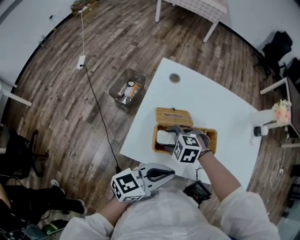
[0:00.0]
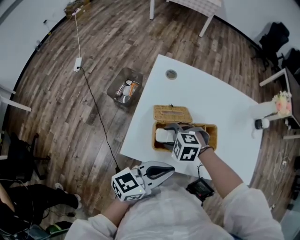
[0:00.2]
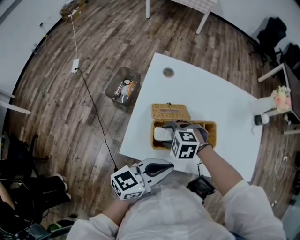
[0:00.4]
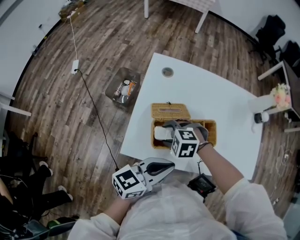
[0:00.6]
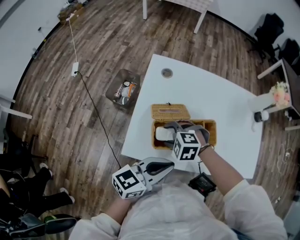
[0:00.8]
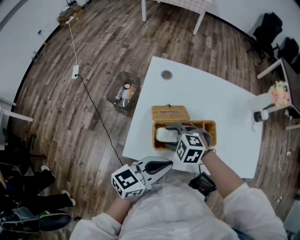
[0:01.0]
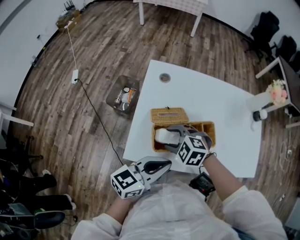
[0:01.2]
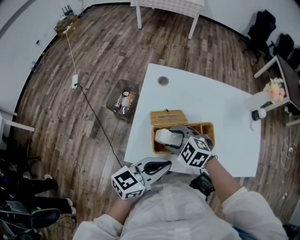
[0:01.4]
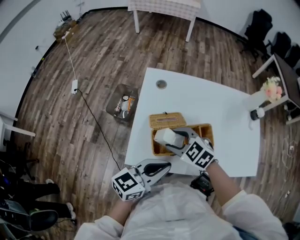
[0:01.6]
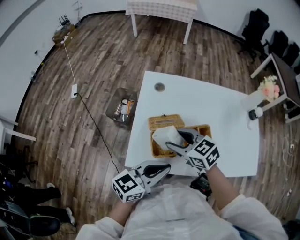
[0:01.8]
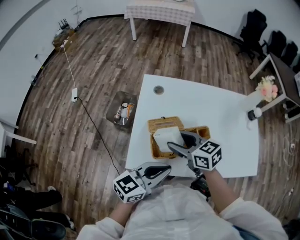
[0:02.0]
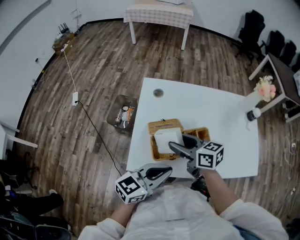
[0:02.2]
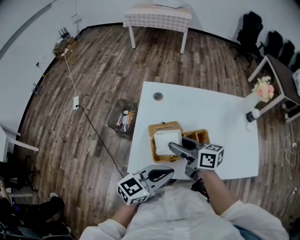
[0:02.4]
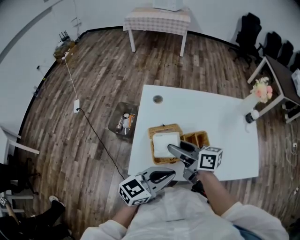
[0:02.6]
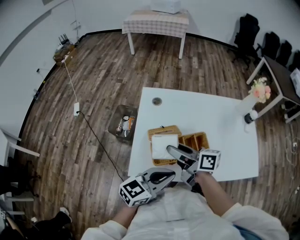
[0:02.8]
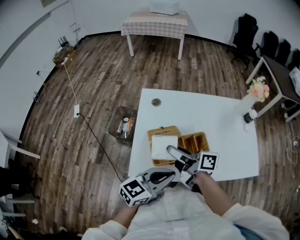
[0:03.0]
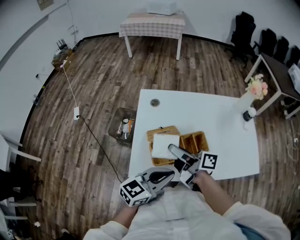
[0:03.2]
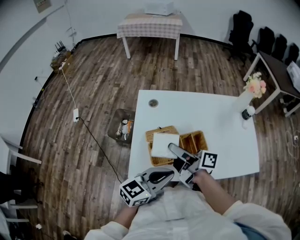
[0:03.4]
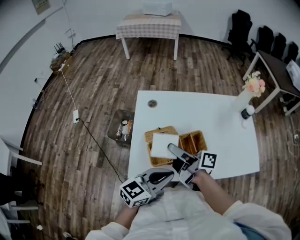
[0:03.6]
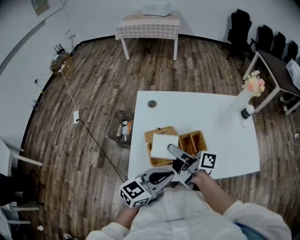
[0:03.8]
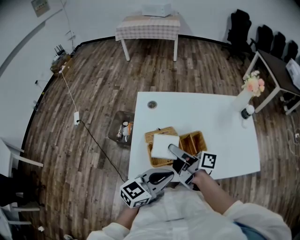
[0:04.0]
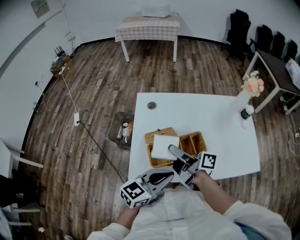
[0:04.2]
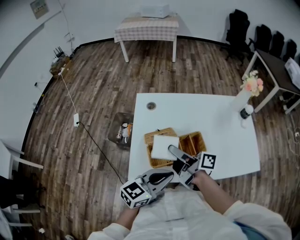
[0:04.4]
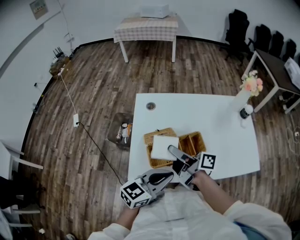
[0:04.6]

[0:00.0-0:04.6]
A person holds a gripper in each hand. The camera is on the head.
0:00.0 to 0:01.6: The right gripper is displaced upward by about 10 cm, and rotates about 40 degrees.
0:01.6 to 0:03.0: The right gripper moves upward, approximately 10 cm, and twists roughly 70 degrees clockwise, seen from behind.
0:03.0 to 0:04.6: The grippers move only a little.

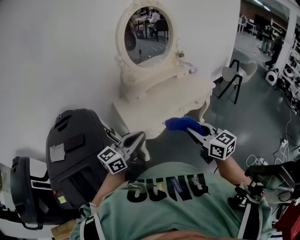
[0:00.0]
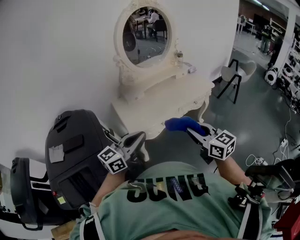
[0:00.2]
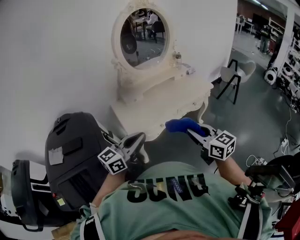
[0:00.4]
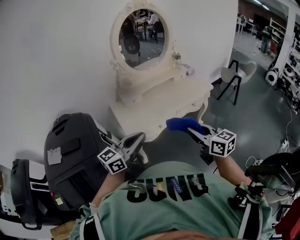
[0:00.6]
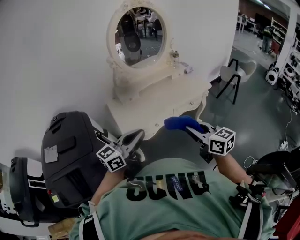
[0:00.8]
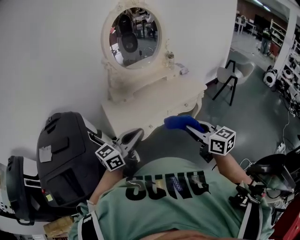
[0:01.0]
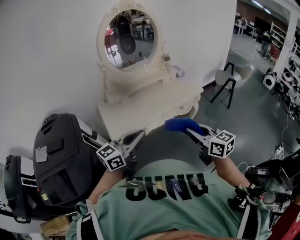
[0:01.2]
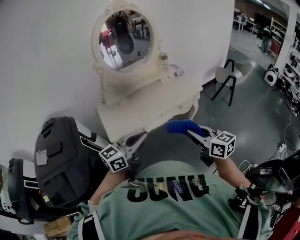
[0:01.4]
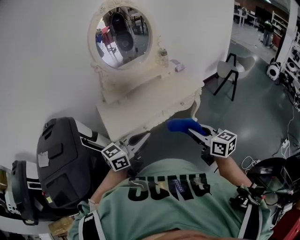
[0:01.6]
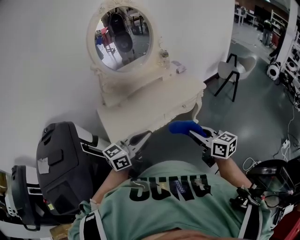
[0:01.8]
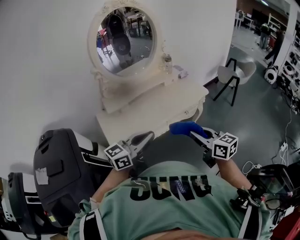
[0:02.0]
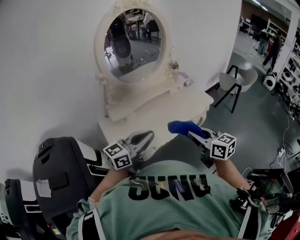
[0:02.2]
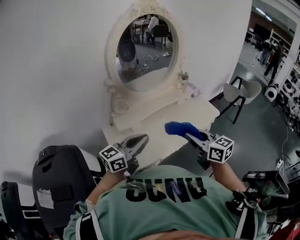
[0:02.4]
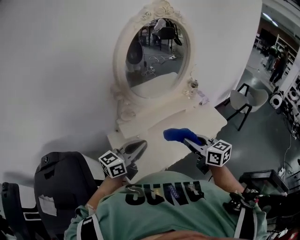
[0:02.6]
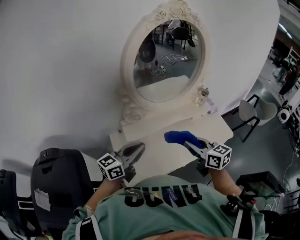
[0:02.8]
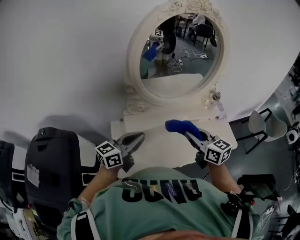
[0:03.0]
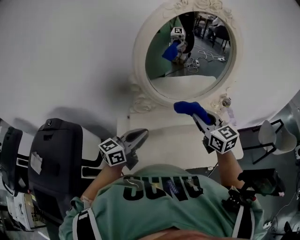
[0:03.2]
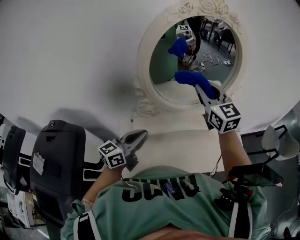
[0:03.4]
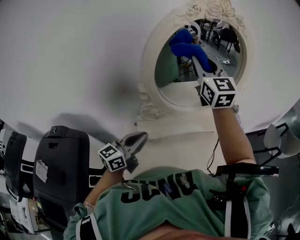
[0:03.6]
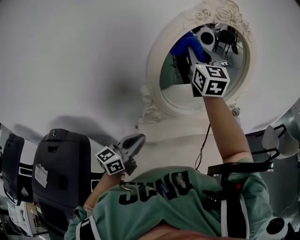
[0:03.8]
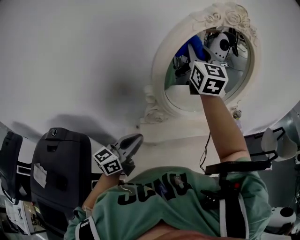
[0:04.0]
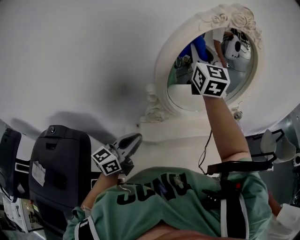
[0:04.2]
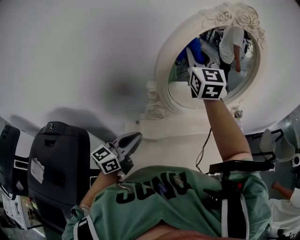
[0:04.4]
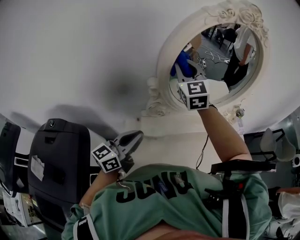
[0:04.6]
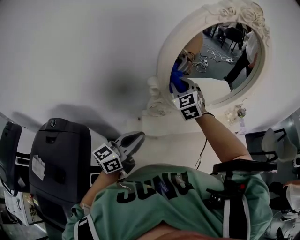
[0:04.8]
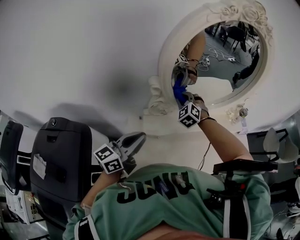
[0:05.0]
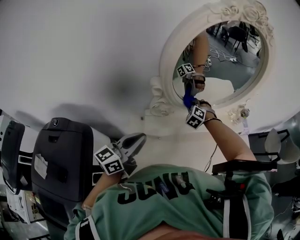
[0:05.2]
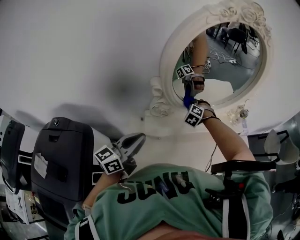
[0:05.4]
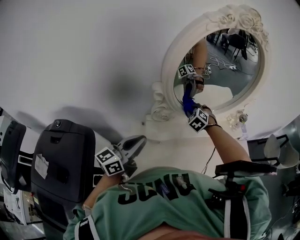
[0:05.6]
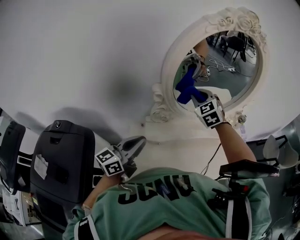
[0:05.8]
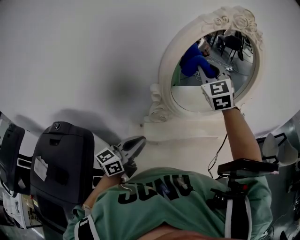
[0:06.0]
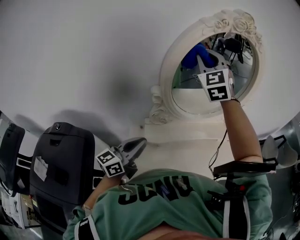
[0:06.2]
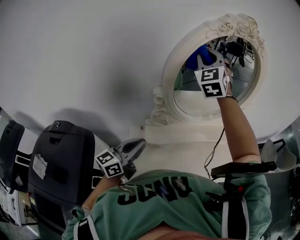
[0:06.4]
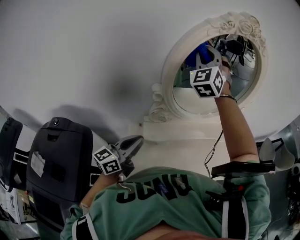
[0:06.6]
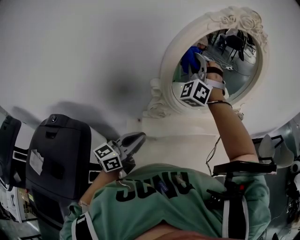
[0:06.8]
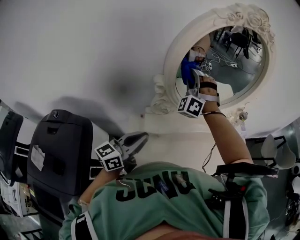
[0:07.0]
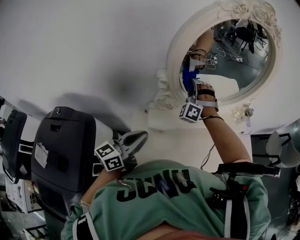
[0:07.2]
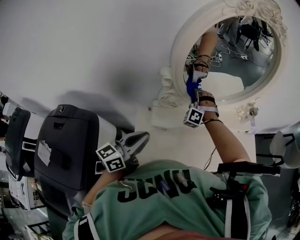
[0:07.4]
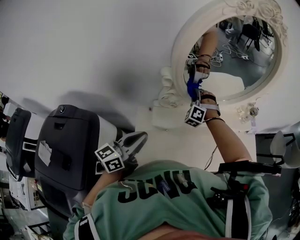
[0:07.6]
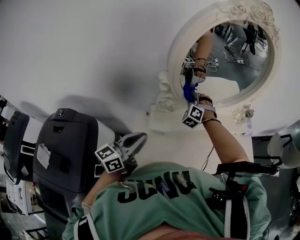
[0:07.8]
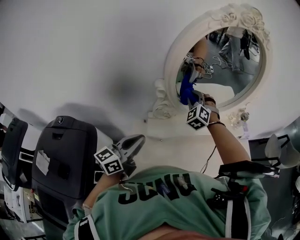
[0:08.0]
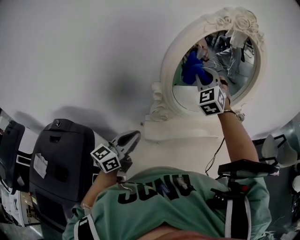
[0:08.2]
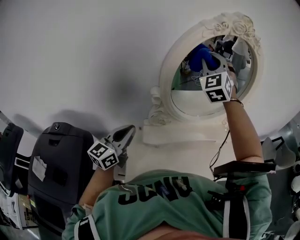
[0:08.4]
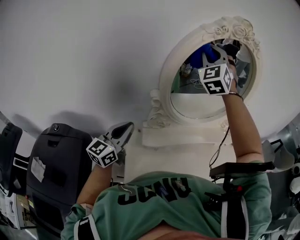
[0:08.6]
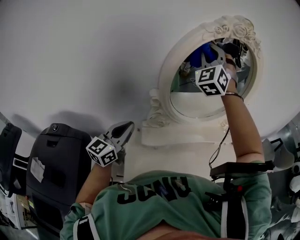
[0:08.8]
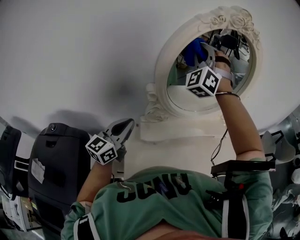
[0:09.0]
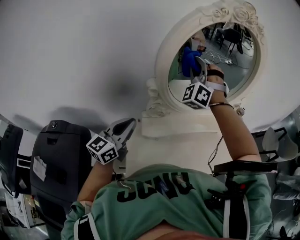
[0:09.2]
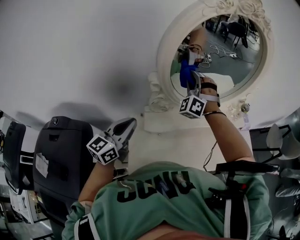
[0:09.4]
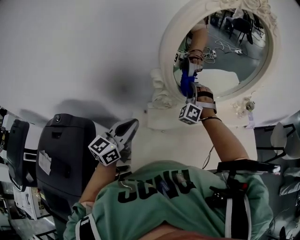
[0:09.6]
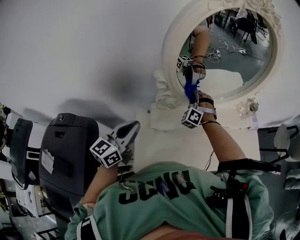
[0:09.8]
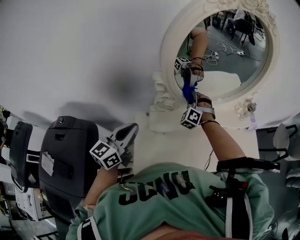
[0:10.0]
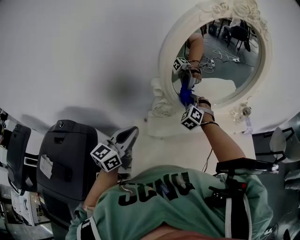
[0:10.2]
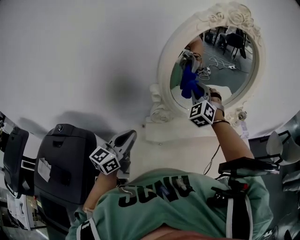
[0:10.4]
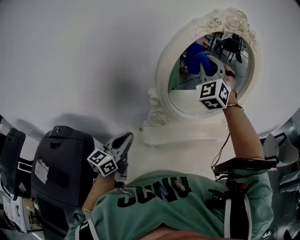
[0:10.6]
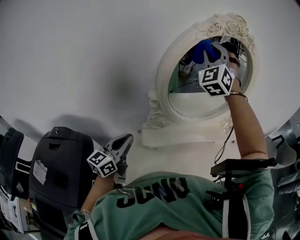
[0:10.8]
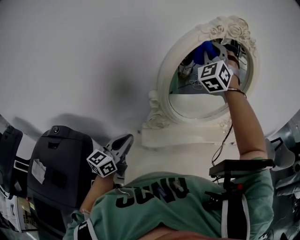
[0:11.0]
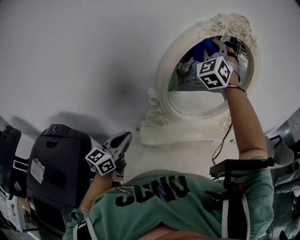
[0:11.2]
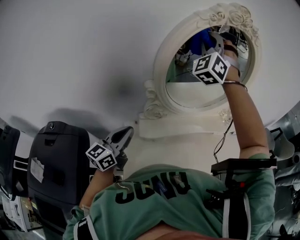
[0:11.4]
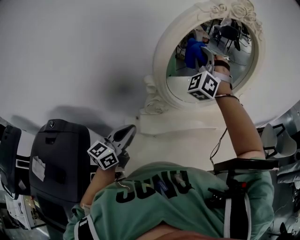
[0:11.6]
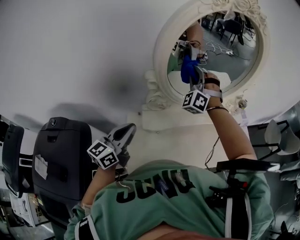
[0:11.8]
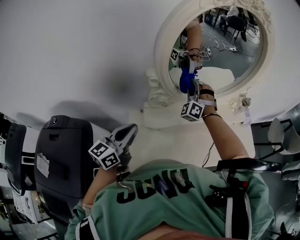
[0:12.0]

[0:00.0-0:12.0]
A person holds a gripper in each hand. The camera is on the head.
0:00.0 to 0:01.6: Both grippers travel together to the right, approximately 20 cm.
0:01.6 to 0:03.0: The two grippers travel together, forward and to the left, some 40 cm. The left gripper turns by approximately 20 degrees.
0:03.0 to 0:04.4: The right gripper is displaced forward, upward and to the left by roughly 40 cm, and changes its angle by about 40 degrees. The left gripper shifts roughly 10 cm to the left.
0:04.4 to 0:06.0: The right gripper moves about 40 cm downward and comes back, and rotates roughly 30 degrees.
0:06.0 to 0:07.6: The right gripper shifts some 30 cm downward, and rotates around the line of its fingers by about 40 degrees, counterclockwise from behind.
0:07.6 to 0:09.0: The right gripper travels upward by about 35 cm, and tilts its fingers some 30 degrees upward. Meanwhile the left gripper moves forward and upward, some 10 cm, and turns by some 20 degrees.
0:09.0 to 0:10.4: The right gripper travels downward by some 20 cm, and rotates about 20 degrees.
0:10.4 to 0:12.0: The right gripper travels upward and back again, about 25 cm each way.

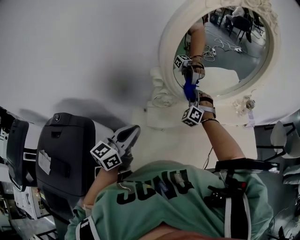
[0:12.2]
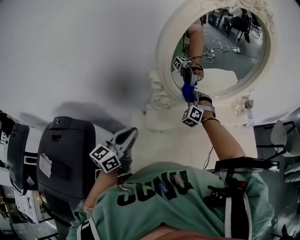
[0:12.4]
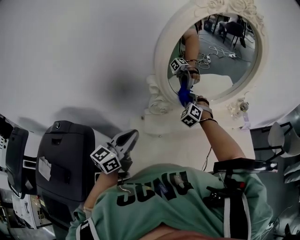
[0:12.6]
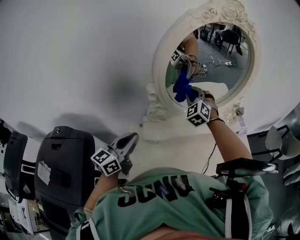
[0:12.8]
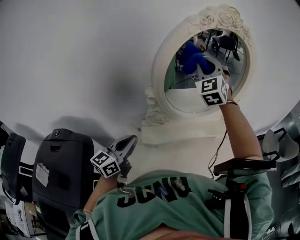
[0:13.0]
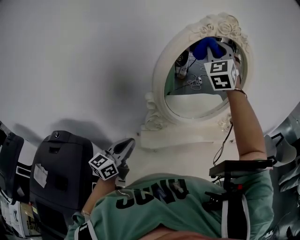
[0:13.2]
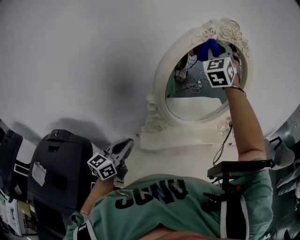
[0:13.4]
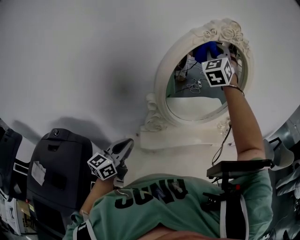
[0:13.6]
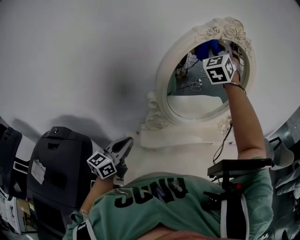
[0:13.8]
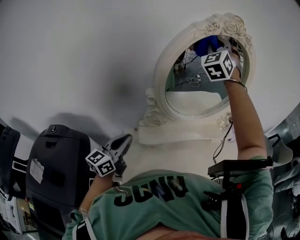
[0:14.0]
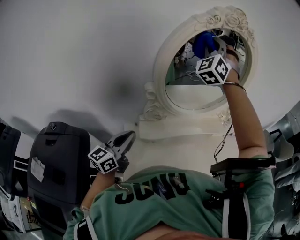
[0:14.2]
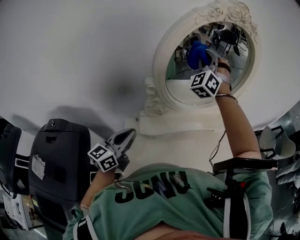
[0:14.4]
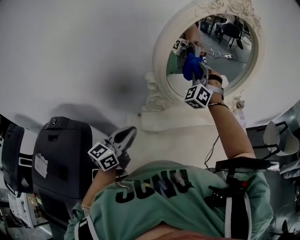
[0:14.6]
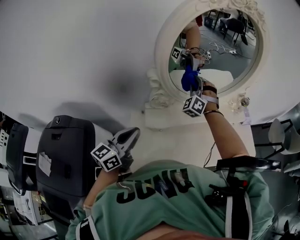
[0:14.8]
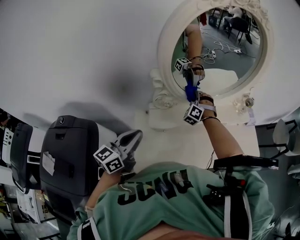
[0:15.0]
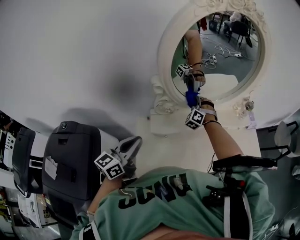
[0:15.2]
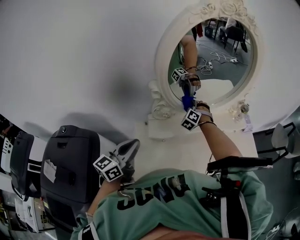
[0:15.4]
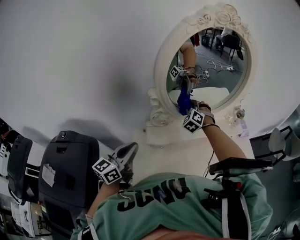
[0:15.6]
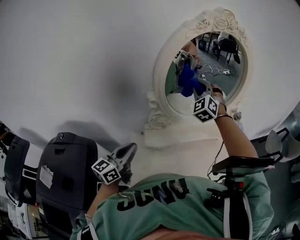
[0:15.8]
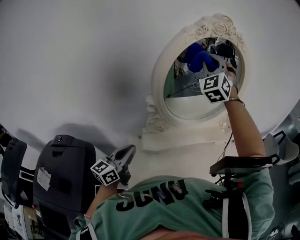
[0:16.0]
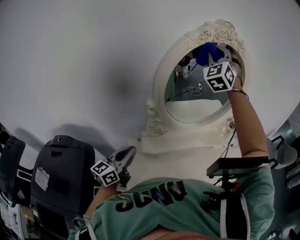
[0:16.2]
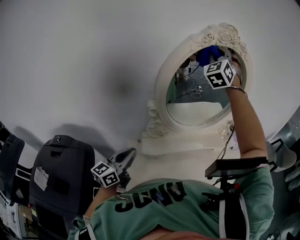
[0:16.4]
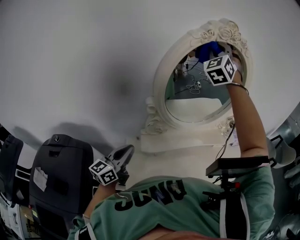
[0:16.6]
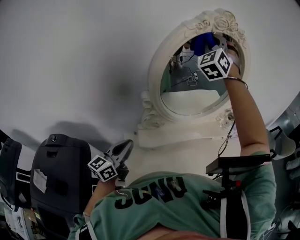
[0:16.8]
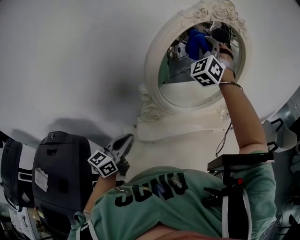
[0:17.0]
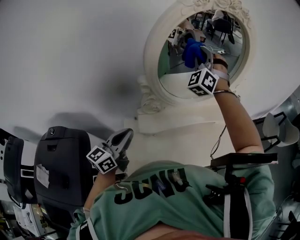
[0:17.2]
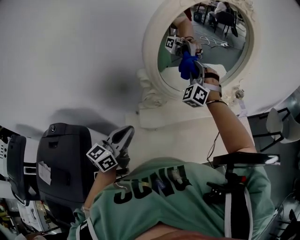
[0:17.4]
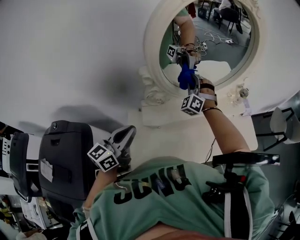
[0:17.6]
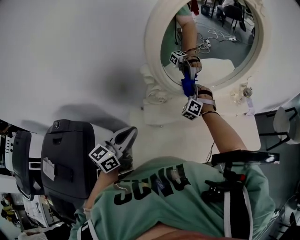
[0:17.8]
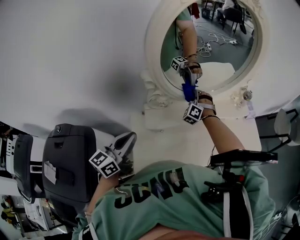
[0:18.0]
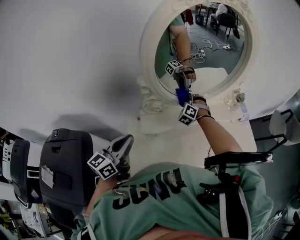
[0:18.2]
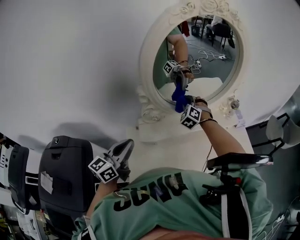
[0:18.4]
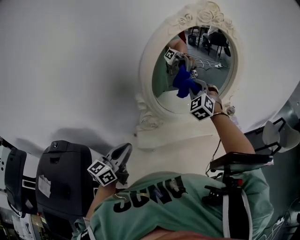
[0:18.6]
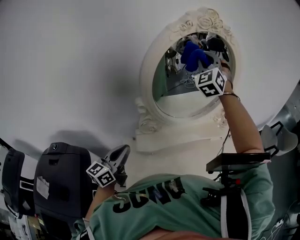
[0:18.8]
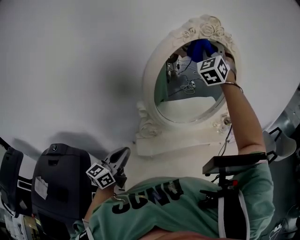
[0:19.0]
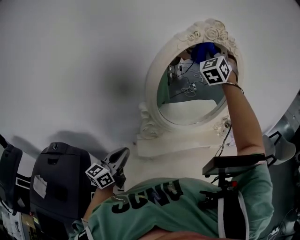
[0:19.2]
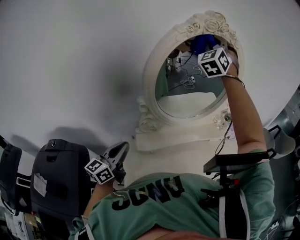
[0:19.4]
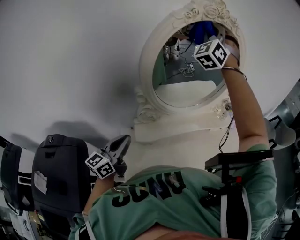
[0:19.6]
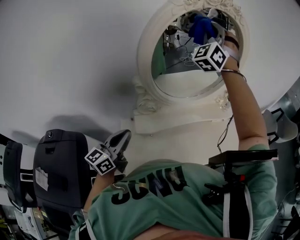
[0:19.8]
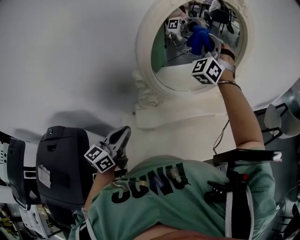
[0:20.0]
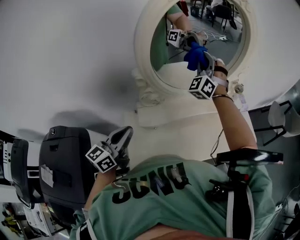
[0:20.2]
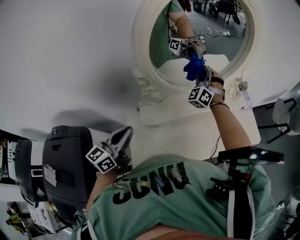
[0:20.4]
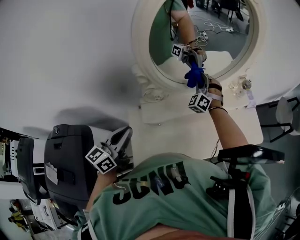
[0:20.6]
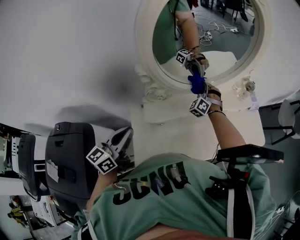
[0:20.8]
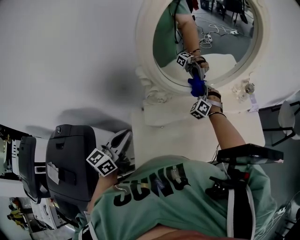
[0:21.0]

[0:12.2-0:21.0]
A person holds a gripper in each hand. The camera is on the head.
0:12.2 to 0:13.6: The right gripper heads upward, covering approximately 50 cm, and changes its angle by about 40 degrees.
0:13.6 to 0:15.2: The right gripper heads downward, covering approximately 50 cm, and tilts its fingers roughly 30 degrees downward.
0:15.2 to 0:16.6: The right gripper goes roughly 50 cm upward, and tilts its fingers about 30 degrees upward.
0:16.6 to 0:18.0: The right gripper is displaced downward by roughly 50 cm, and points its fingers approximately 30 degrees further downward.
0:18.0 to 0:19.6: The right gripper travels upward by about 50 cm, and tips its fingers upward by about 40 degrees.
0:19.6 to 0:21.0: The right gripper travels downward by approximately 50 cm, and tilts its fingers roughly 40 degrees downward.
